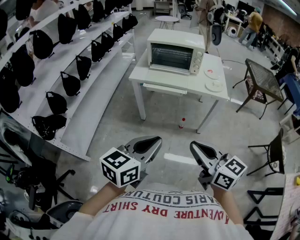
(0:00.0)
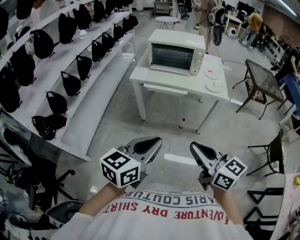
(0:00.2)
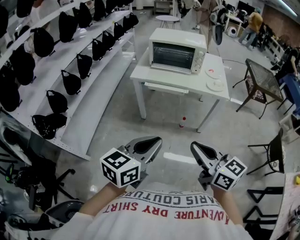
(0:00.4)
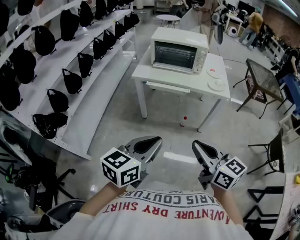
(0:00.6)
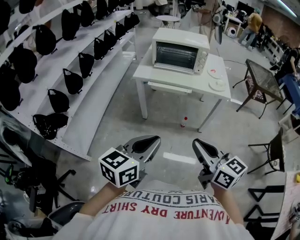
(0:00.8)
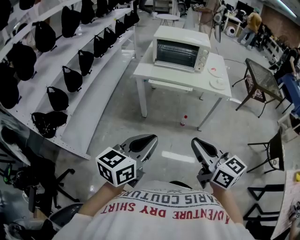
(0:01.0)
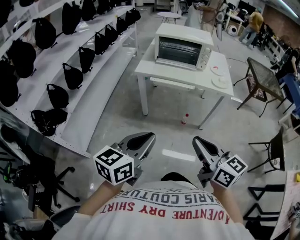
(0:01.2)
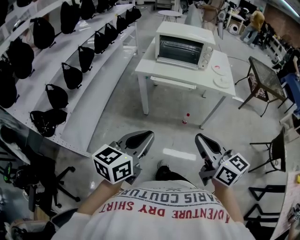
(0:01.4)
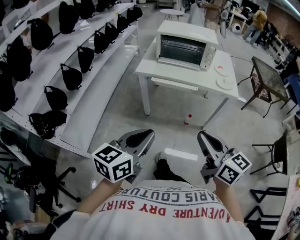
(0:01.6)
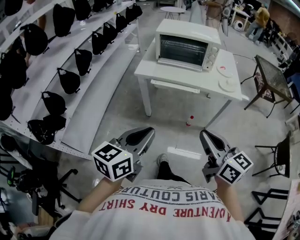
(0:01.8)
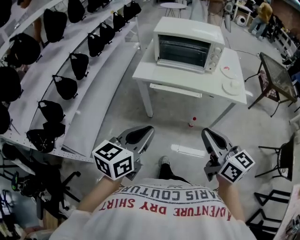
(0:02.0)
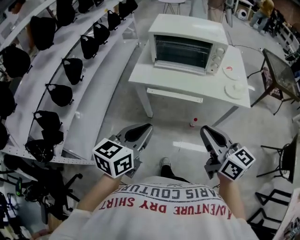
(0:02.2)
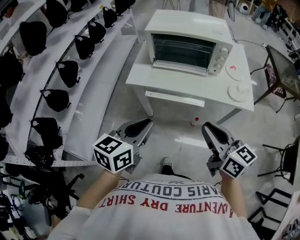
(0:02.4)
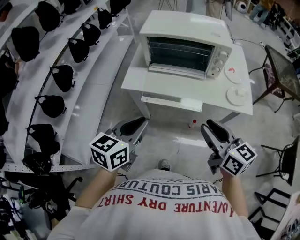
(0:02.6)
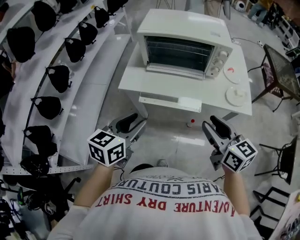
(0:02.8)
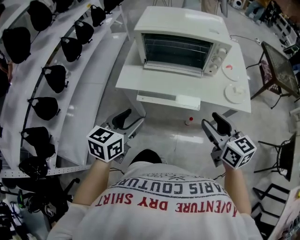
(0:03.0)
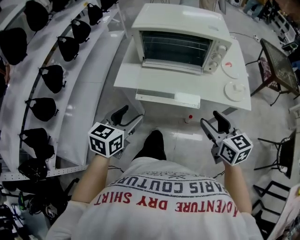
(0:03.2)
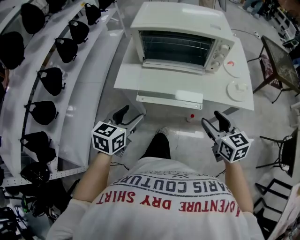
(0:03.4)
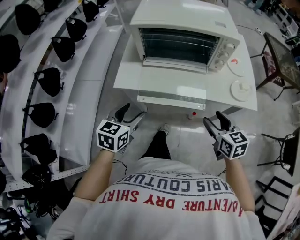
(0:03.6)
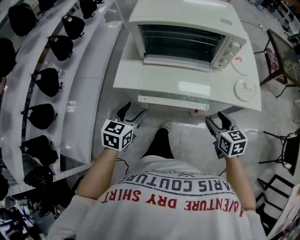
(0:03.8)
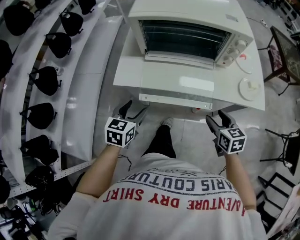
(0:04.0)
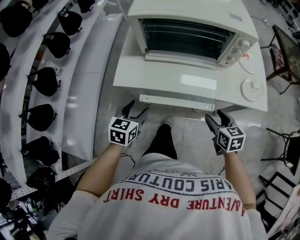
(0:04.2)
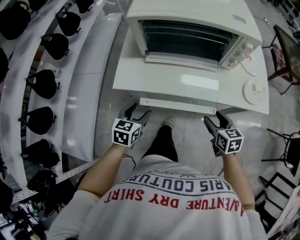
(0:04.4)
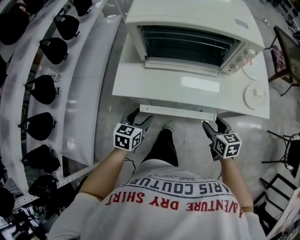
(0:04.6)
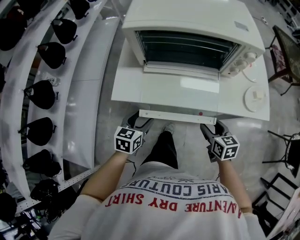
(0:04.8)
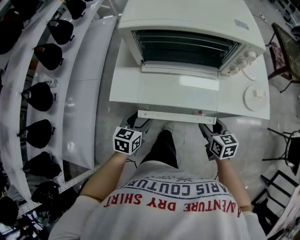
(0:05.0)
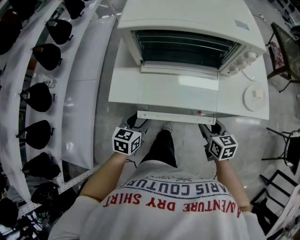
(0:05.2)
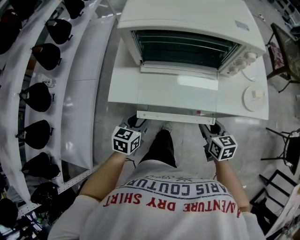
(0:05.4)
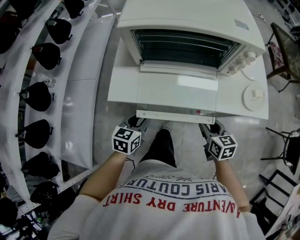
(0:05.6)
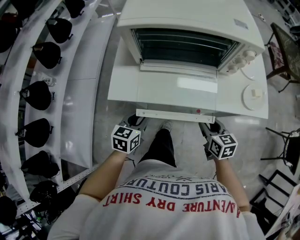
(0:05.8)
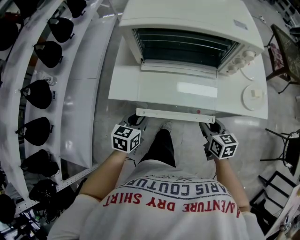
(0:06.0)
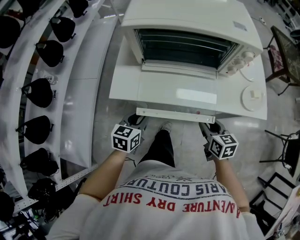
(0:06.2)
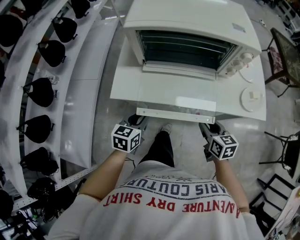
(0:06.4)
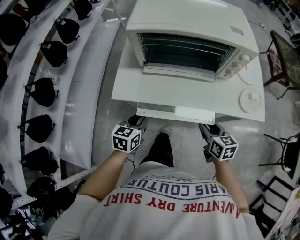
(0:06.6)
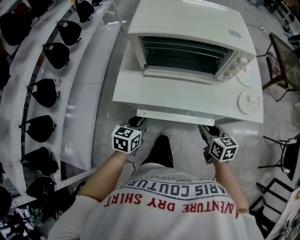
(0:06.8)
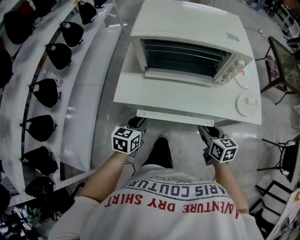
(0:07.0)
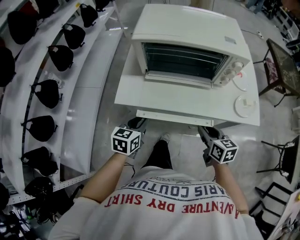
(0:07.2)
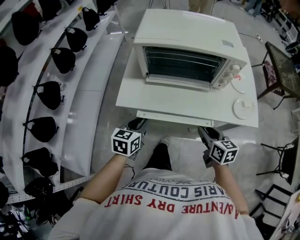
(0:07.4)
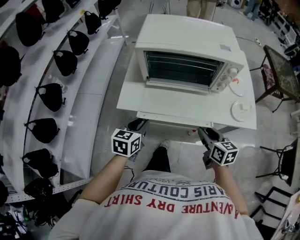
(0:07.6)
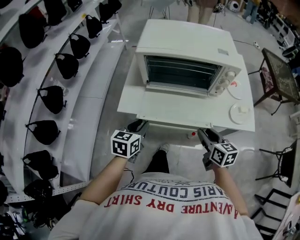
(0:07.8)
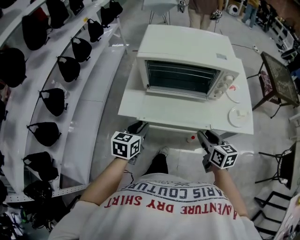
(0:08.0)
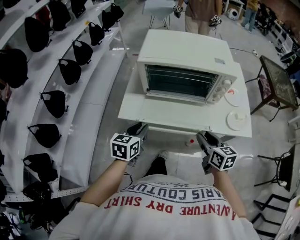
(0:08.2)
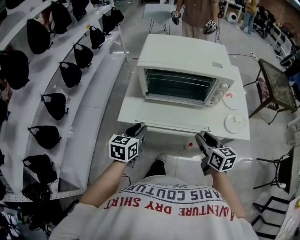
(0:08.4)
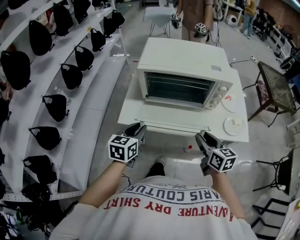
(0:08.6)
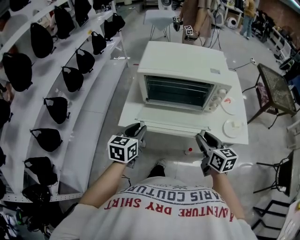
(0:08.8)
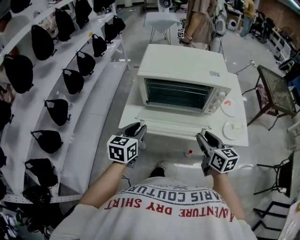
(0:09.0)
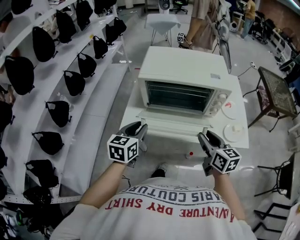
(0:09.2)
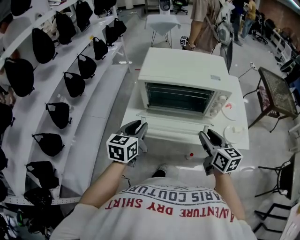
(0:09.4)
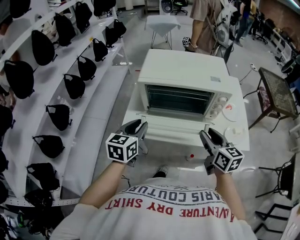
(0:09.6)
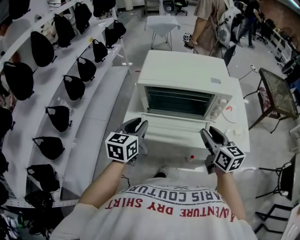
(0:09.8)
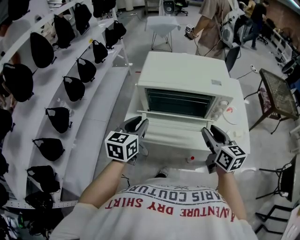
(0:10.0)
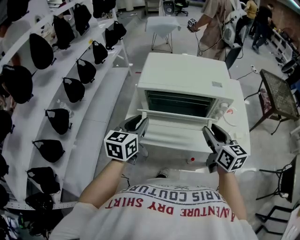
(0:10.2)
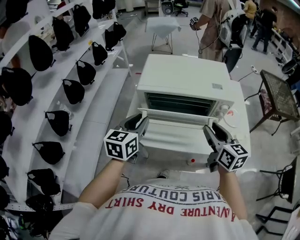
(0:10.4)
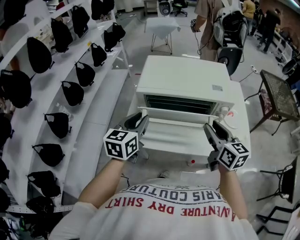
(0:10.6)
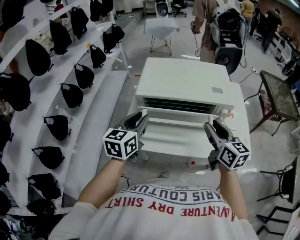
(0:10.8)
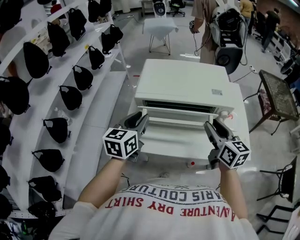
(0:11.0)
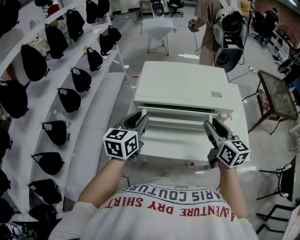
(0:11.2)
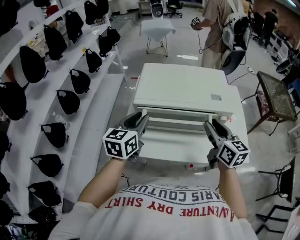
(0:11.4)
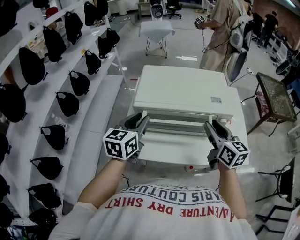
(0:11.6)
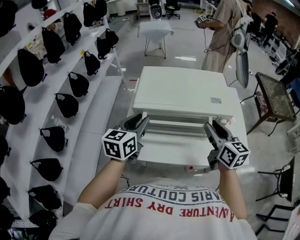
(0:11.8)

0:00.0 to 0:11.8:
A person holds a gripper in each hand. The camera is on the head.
0:00.0 to 0:01.4: The right gripper shifts some 5 cm to the left, while the left gripper heads to the left, covering about 10 cm.
0:01.4 to 0:03.0: Both grippers move forward, approximately 35 cm. The right gripper opens its fingers. The left gripper opens up.
0:03.0 to 0:04.4: The left gripper heads downward and forward, covering approximately 20 cm; the right gripper heads downward, covering approximately 20 cm, and rotates approximately 20 degrees.
0:04.4 to 0:06.0: The left gripper closes its fingers; the right gripper closes up.
0:06.0 to 0:07.4: The grippers both shift upward by about 5 cm.
0:07.4 to 0:08.8: The two grippers go roughly 10 cm upward.
0:08.8 to 0:10.4: Both grippers travel together upward and forward, some 10 cm.
0:10.4 to 0:11.8: Both grippers move forward, some 5 cm.

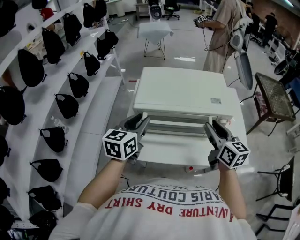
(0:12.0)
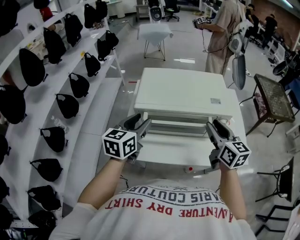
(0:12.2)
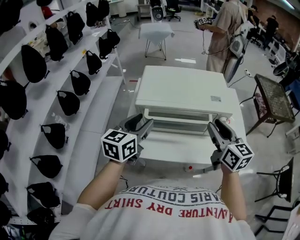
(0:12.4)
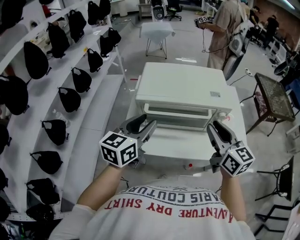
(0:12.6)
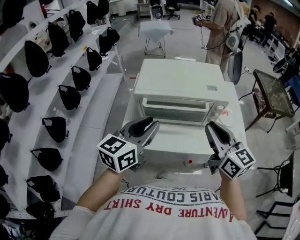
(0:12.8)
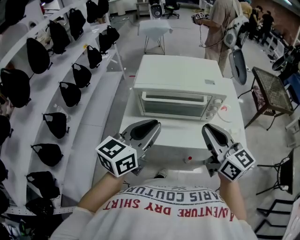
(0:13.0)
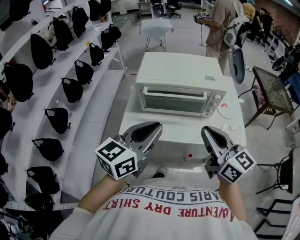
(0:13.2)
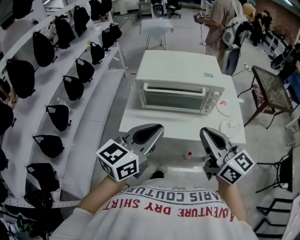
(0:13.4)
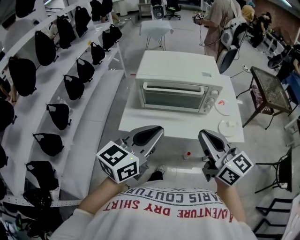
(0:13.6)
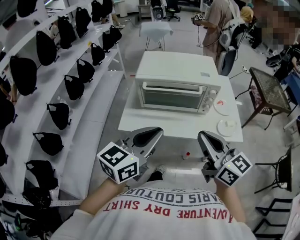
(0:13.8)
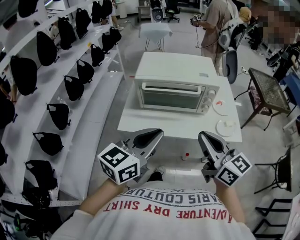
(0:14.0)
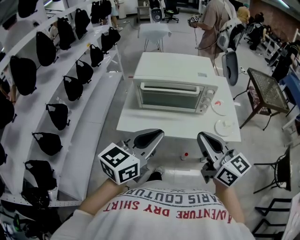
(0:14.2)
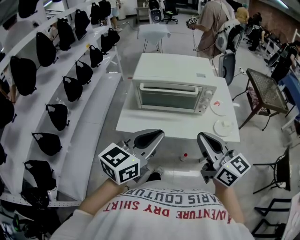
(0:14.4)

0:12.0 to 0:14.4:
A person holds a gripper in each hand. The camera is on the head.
0:12.0 to 0:13.2: The right gripper moves backward, roughly 20 cm, and closes; the left gripper goes about 20 cm backward and to the right.
0:13.2 to 0:14.4: Both grippers move backward, approximately 5 cm.

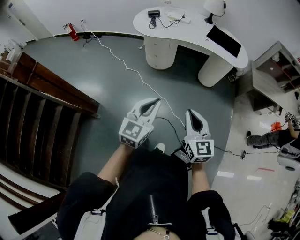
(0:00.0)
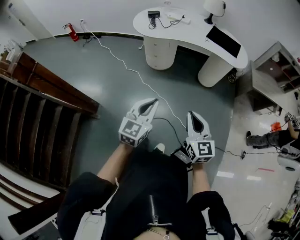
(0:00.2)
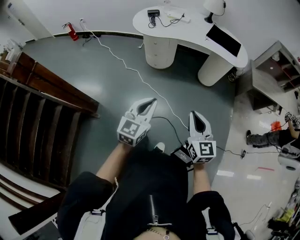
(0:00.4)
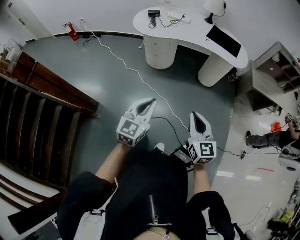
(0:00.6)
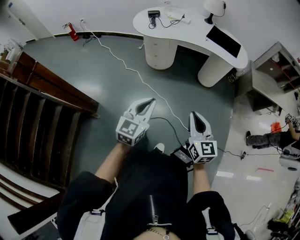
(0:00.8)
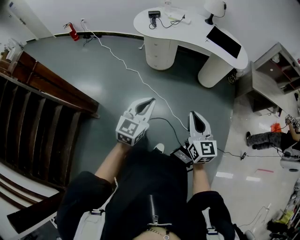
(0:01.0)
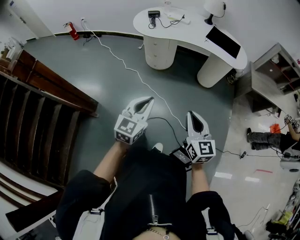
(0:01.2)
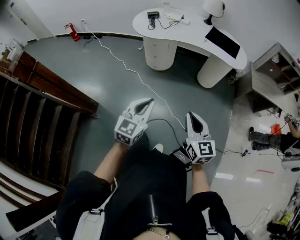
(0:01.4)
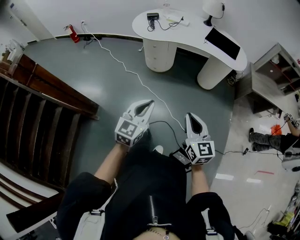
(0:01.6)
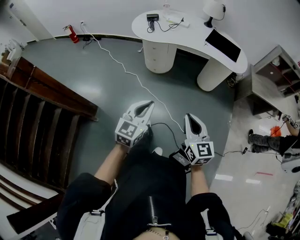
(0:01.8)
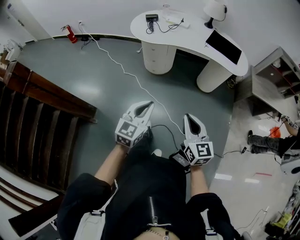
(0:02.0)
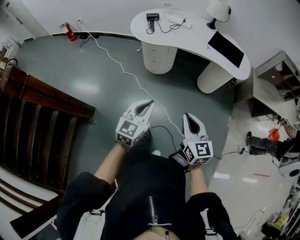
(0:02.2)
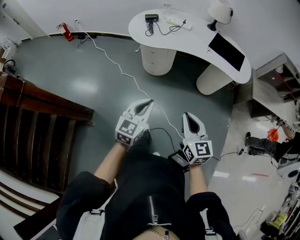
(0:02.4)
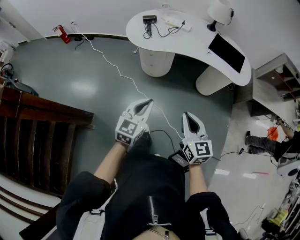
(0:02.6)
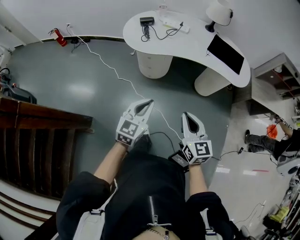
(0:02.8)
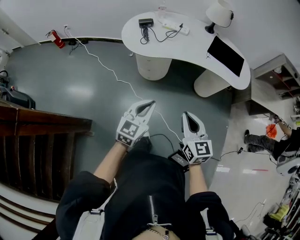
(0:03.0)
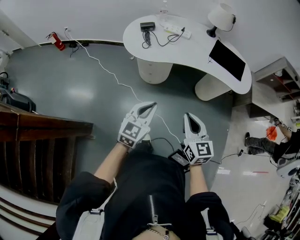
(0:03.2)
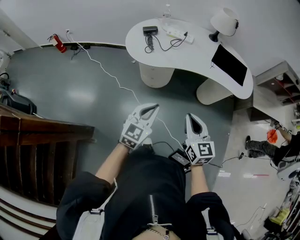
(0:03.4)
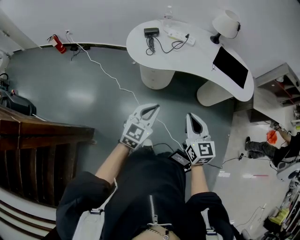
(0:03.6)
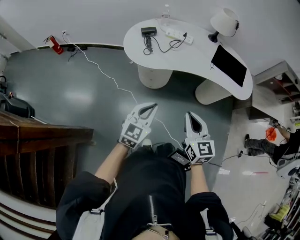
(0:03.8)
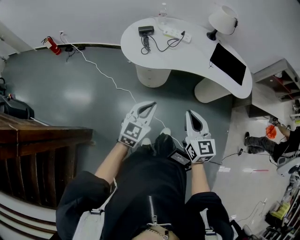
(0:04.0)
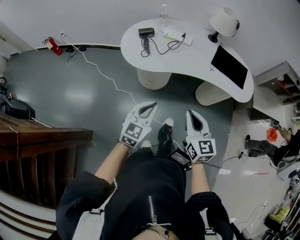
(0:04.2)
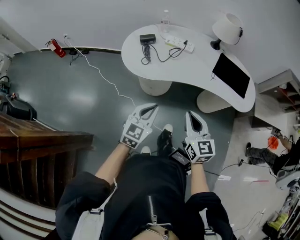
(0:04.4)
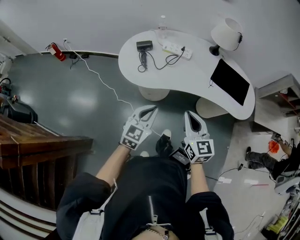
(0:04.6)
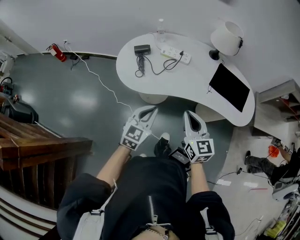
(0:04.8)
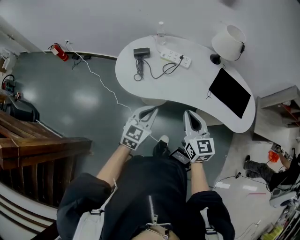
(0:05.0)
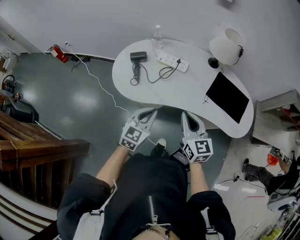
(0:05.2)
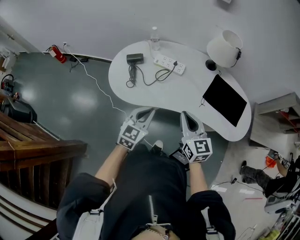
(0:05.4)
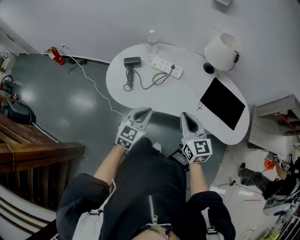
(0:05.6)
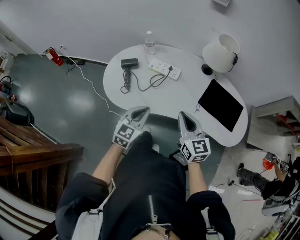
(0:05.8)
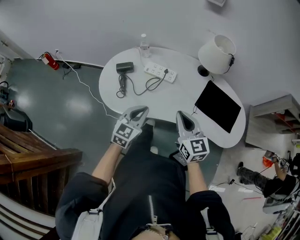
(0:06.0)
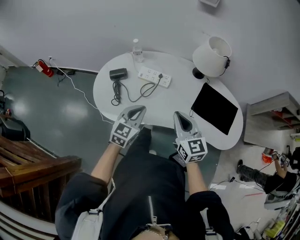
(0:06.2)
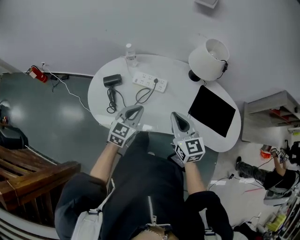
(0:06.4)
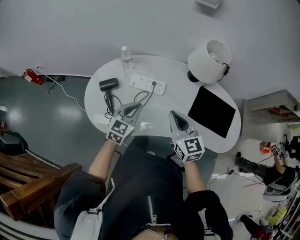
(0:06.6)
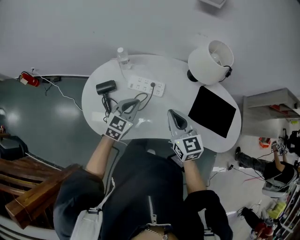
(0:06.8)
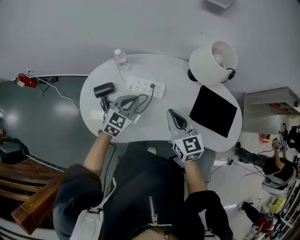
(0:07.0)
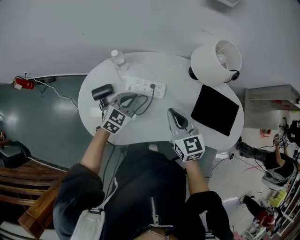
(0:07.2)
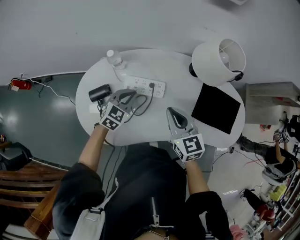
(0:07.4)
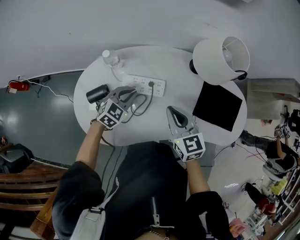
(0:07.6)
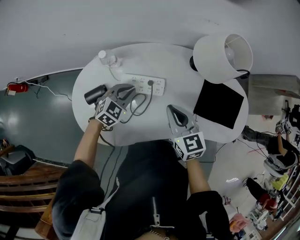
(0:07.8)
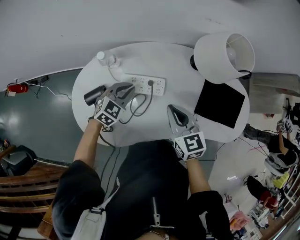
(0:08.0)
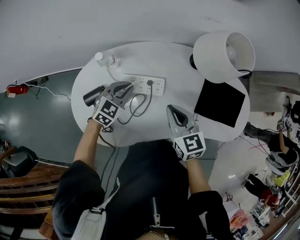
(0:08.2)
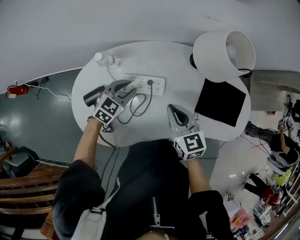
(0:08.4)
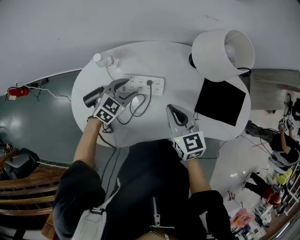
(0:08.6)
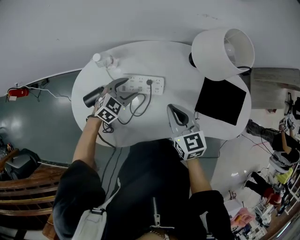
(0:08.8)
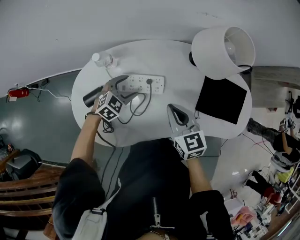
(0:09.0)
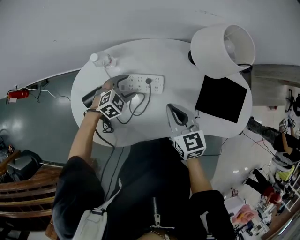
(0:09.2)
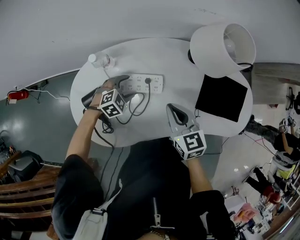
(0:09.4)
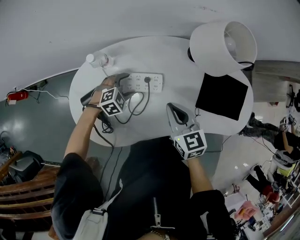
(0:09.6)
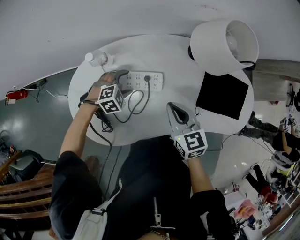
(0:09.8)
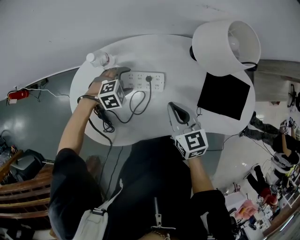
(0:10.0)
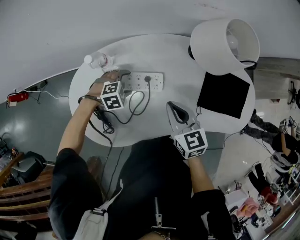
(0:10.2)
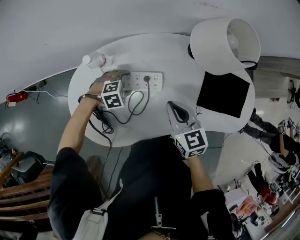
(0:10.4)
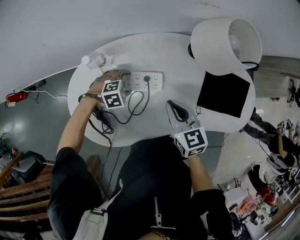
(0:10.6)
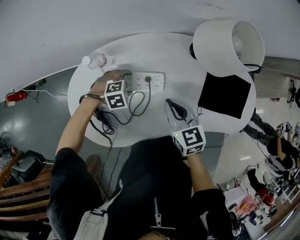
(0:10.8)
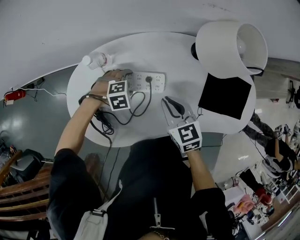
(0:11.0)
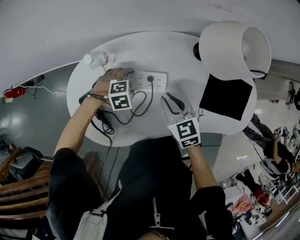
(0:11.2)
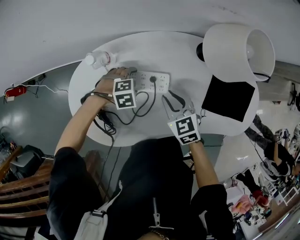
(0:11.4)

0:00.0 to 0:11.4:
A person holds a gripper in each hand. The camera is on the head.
0:00.0 to 0:01.4: The grippers make only small movements.
0:01.4 to 0:02.8: Both grippers travel together forward, about 25 cm.
0:02.8 to 0:04.2: Both grippers travel together forward, roughly 15 cm.
0:04.2 to 0:05.6: Both grippers move forward, approximately 25 cm.
0:05.6 to 0:07.2: Both grippers move forward, some 25 cm. The left gripper changes its angle by roughly 20 degrees.
0:07.2 to 0:08.6: The left gripper moves downward and forward, roughly 10 cm, and opens its fingers, while the right gripper moves downward, roughly 5 cm.
0:08.6 to 0:10.0: The left gripper shifts approximately 5 cm downward, and rotates about 40 degrees.
0:10.0 to 0:11.4: The right gripper travels downward by roughly 5 cm.
